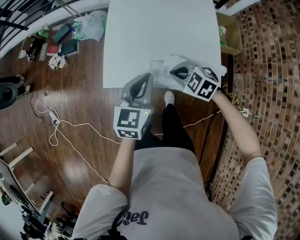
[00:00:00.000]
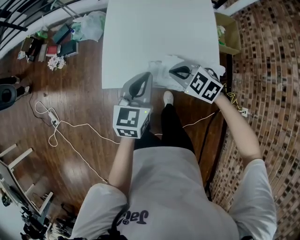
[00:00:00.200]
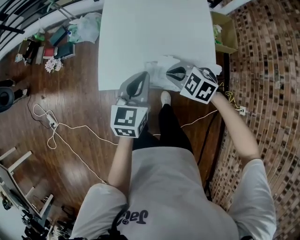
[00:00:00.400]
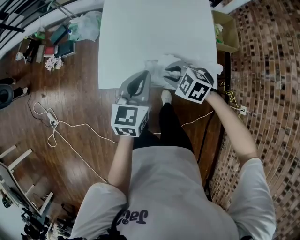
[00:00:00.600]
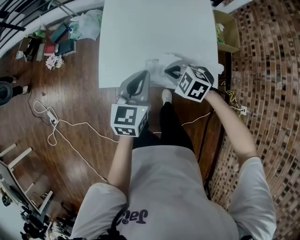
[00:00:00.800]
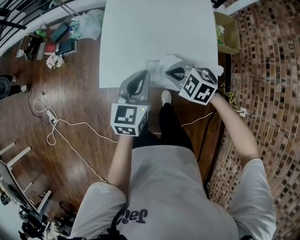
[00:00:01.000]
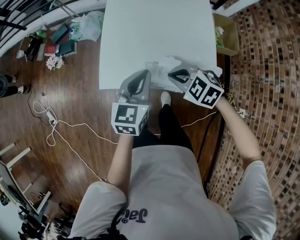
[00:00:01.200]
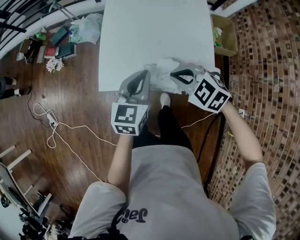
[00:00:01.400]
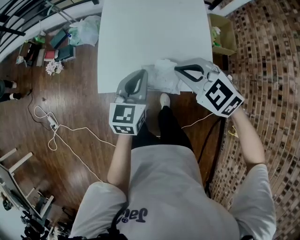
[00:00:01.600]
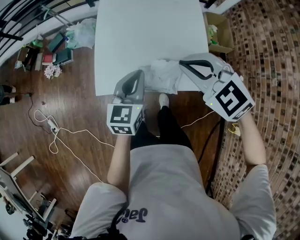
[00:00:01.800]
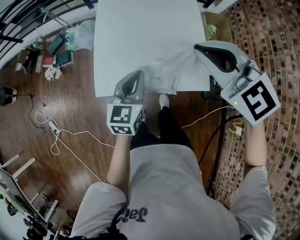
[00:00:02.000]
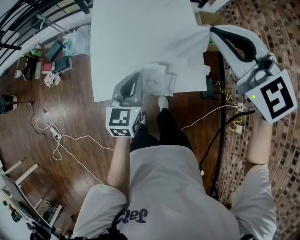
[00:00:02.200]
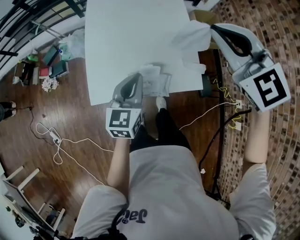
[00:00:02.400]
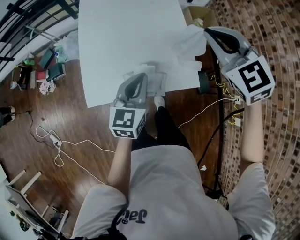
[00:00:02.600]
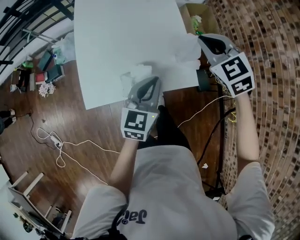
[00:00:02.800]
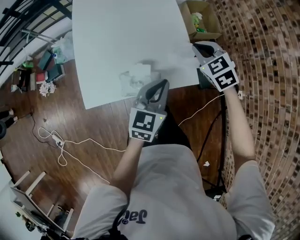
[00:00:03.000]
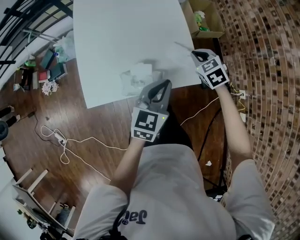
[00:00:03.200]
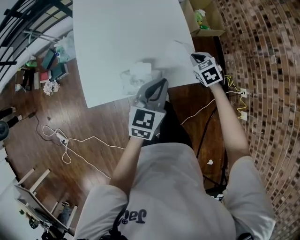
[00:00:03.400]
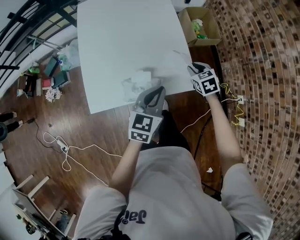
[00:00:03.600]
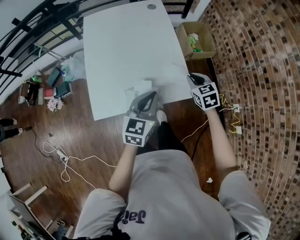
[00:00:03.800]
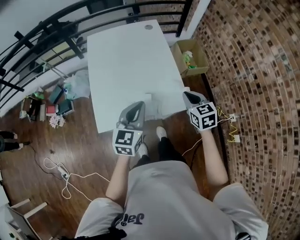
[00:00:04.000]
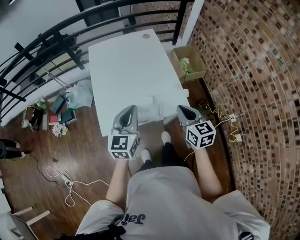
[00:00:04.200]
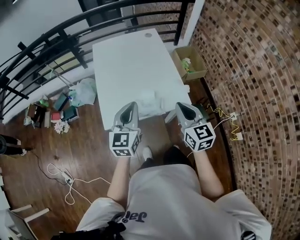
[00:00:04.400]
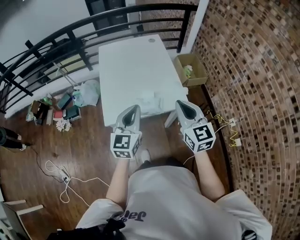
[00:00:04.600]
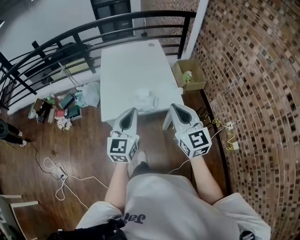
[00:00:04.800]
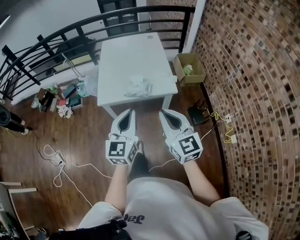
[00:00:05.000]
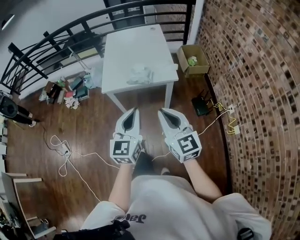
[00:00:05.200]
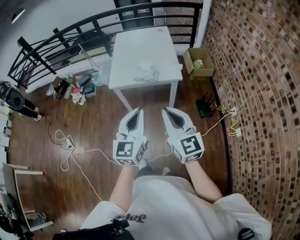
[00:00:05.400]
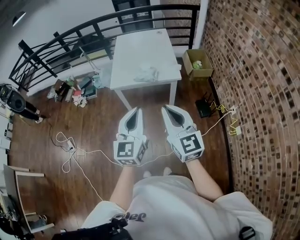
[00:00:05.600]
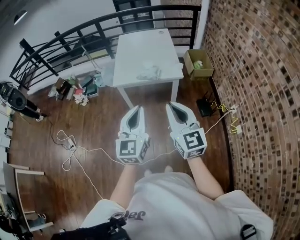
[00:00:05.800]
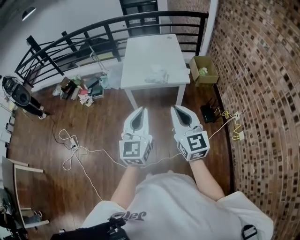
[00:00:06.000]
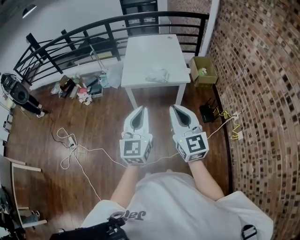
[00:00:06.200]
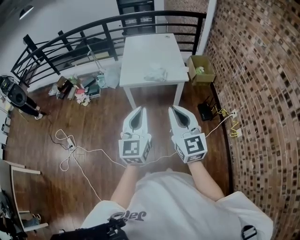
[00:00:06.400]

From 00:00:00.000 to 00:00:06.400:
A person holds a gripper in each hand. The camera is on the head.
From 00:00:00.000 to 00:00:01.600: The right gripper shifts roughly 15 cm upward, and opens, then closes again.
From 00:00:01.600 to 00:00:03.200: The right gripper shifts by approximately 30 cm, and rotates about 40 degrees. Meanwhile the left gripper moves some 20 cm, and changes its angle by roughly 20 degrees.
From 00:00:03.200 to 00:00:04.800: The right gripper goes about 40 cm backward and upward, and tips its fingers upward by roughly 50 degrees, while the left gripper goes approximately 30 cm backward, upward and to the left, and rotates approximately 30 degrees.
From 00:00:04.800 to 00:00:06.400: The two grippers go approximately 30 cm backward.

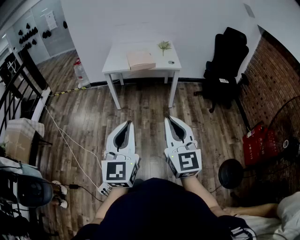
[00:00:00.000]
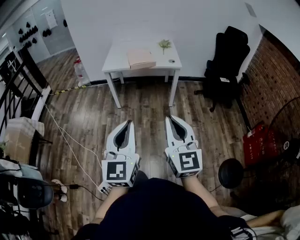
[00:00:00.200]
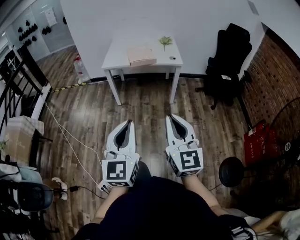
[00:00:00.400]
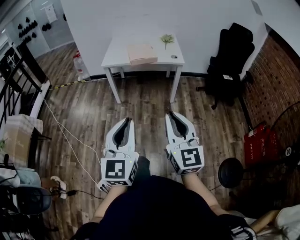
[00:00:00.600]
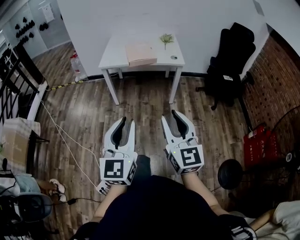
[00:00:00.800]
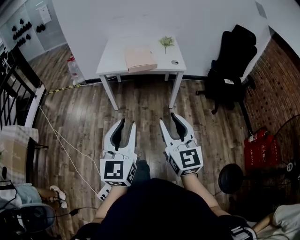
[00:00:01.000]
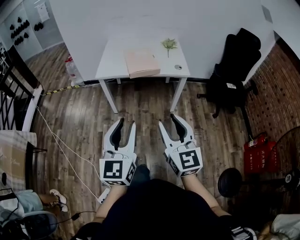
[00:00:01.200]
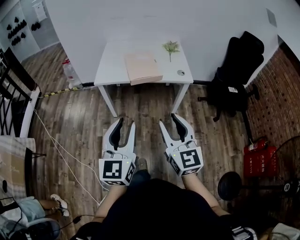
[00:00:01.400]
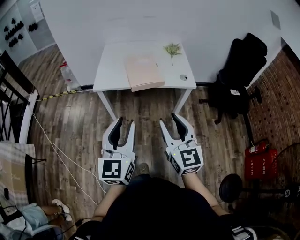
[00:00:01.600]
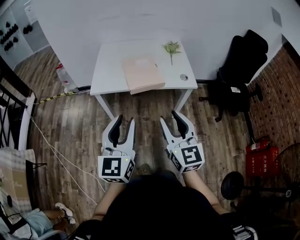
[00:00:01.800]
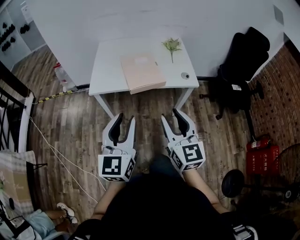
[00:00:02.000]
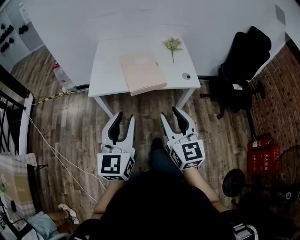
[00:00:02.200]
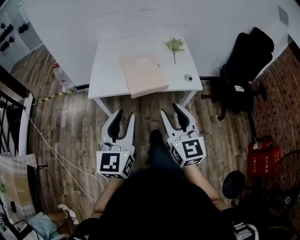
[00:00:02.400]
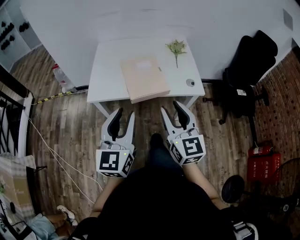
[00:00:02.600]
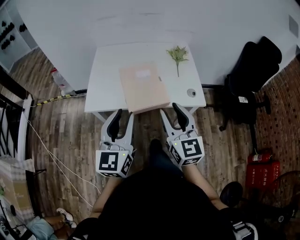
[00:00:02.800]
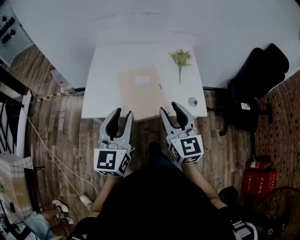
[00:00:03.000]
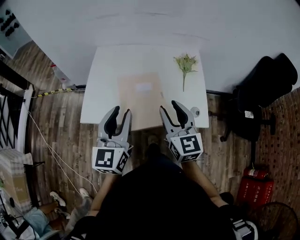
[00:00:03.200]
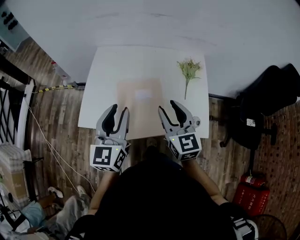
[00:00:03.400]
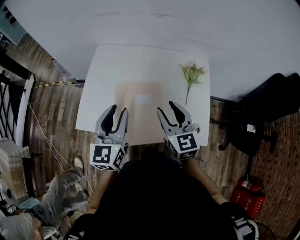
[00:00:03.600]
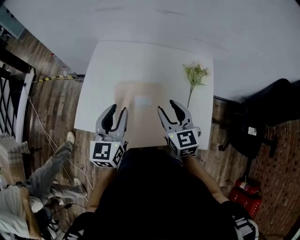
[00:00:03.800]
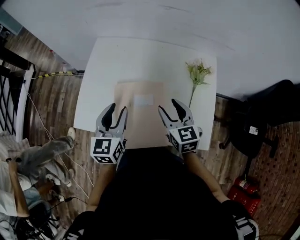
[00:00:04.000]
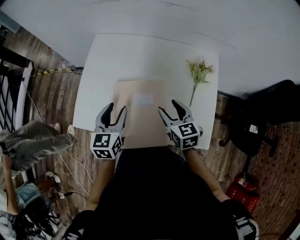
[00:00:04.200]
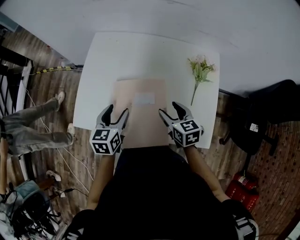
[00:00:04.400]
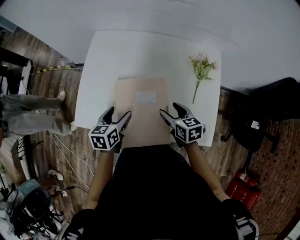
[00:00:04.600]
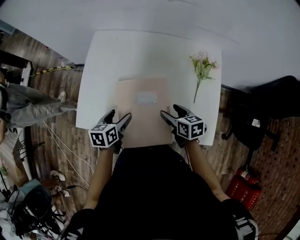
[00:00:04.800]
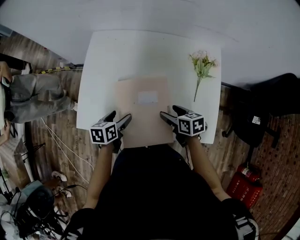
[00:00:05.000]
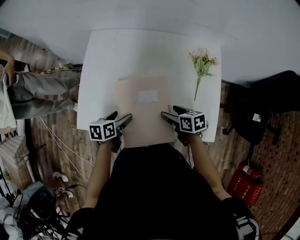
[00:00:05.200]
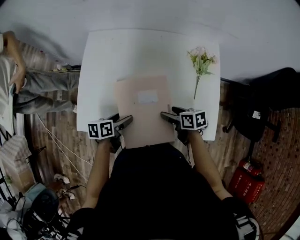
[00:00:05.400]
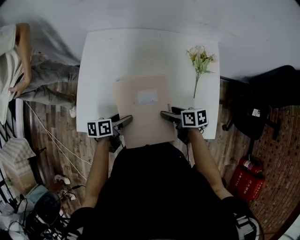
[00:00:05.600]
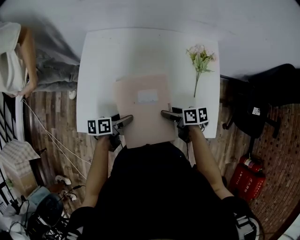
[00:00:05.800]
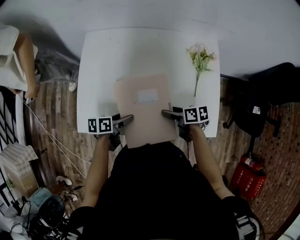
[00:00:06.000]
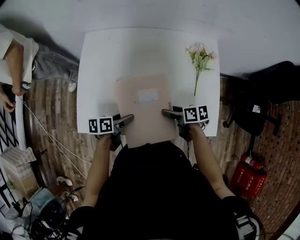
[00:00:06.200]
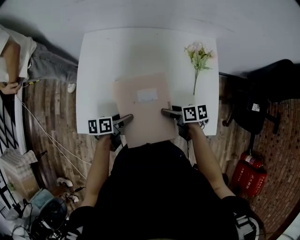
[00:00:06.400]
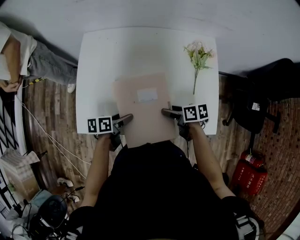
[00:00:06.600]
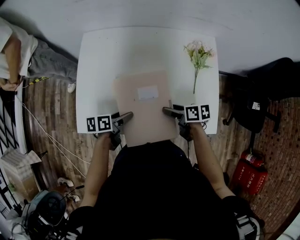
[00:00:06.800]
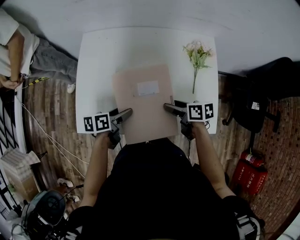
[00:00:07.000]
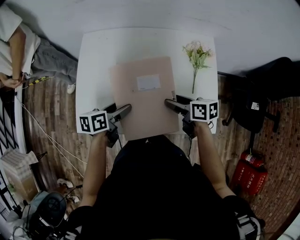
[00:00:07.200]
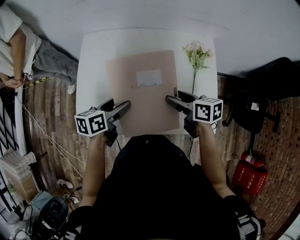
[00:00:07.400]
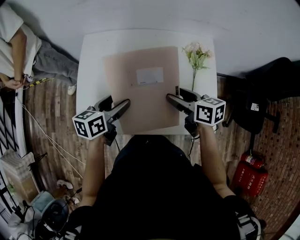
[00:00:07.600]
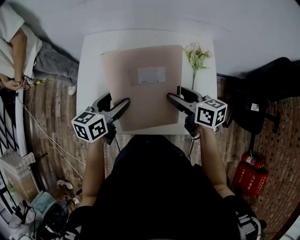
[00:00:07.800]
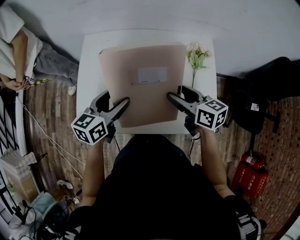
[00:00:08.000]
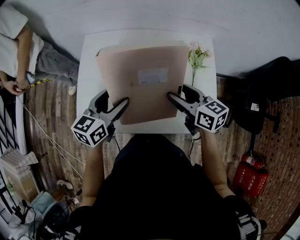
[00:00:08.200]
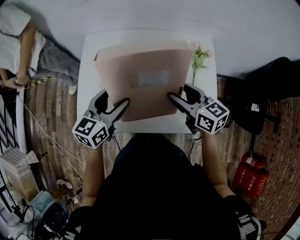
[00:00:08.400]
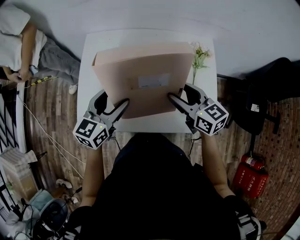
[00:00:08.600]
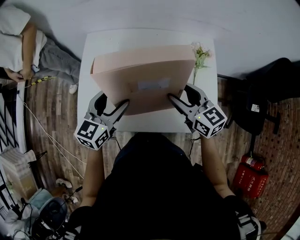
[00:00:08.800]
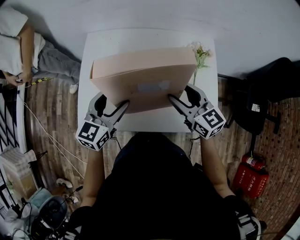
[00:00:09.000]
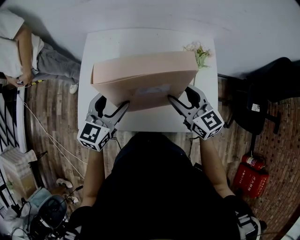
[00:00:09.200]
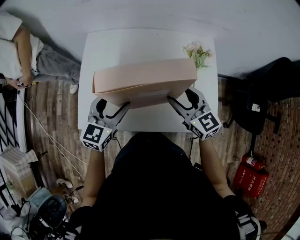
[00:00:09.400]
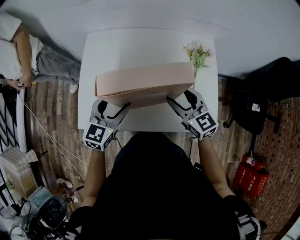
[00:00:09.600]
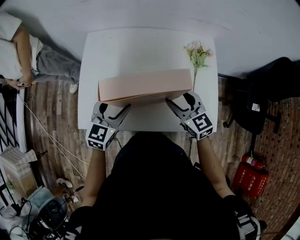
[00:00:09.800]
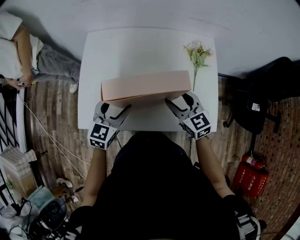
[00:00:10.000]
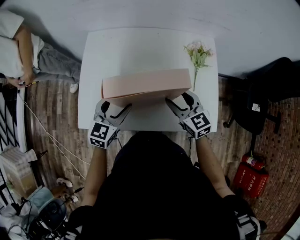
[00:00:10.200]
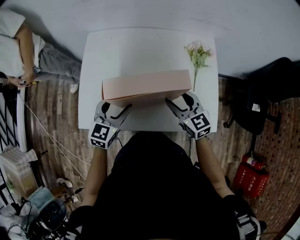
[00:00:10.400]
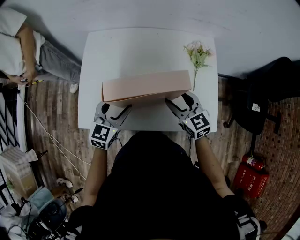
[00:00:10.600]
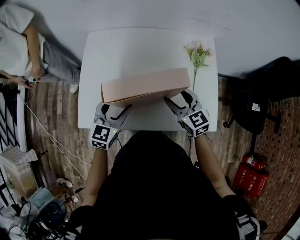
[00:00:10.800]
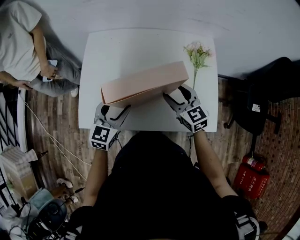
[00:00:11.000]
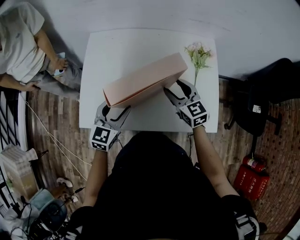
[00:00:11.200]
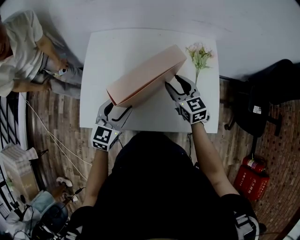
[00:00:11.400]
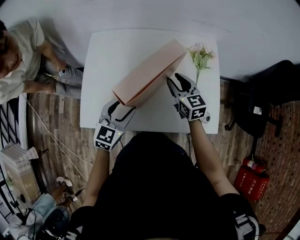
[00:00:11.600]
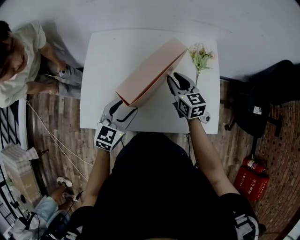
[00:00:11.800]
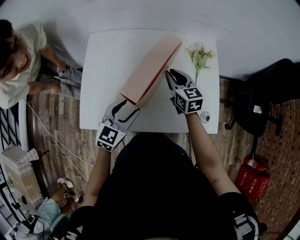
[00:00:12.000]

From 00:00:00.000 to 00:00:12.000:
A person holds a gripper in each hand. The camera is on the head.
From 00:00:00.000 to 00:00:01.600: The grippers both shift forward by approximately 40 cm. The right gripper opens its fingers.
From 00:00:01.600 to 00:00:03.000: The grippers both shift forward by roughly 35 cm.
From 00:00:03.000 to 00:00:04.400: The two grippers go approximately 30 cm forward and downward. The right gripper tips its fingers downward by approximately 30 degrees, and opens its fingers; the left gripper tips its fingers downward by roughly 30 degrees, and opens up.
From 00:00:04.400 to 00:00:06.000: Both grippers move downward, some 10 cm. The left gripper swivels roughly 50 degrees. The right gripper changes its angle by about 40 degrees.
From 00:00:06.000 to 00:00:07.600: The two grippers go some 15 cm upward. The right gripper rotates approximately 30 degrees. The left gripper turns by approximately 30 degrees.
From 00:00:07.600 to 00:00:09.000: Both grippers move upward, roughly 5 cm. The right gripper swivels about 30 degrees. Meanwhile the left gripper swivels about 40 degrees.
From 00:00:09.000 to 00:00:10.400: The two grippers go approximately 5 cm downward.
From 00:00:10.400 to 00:00:12.000: The right gripper moves forward, approximately 10 cm, and closes its fingers.

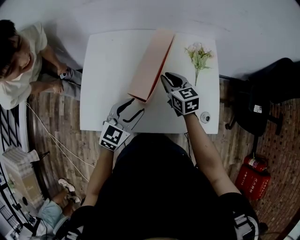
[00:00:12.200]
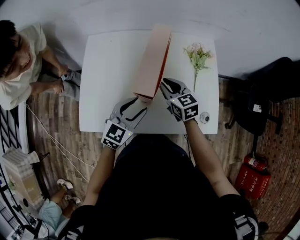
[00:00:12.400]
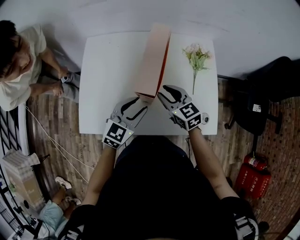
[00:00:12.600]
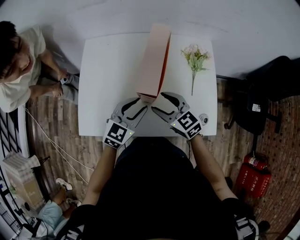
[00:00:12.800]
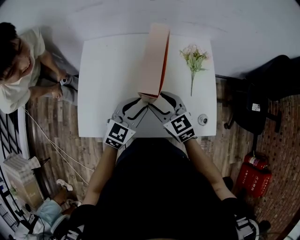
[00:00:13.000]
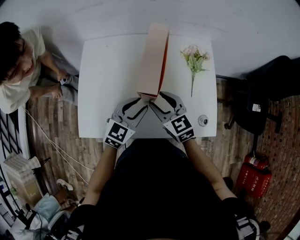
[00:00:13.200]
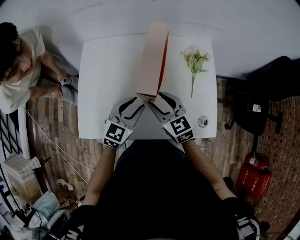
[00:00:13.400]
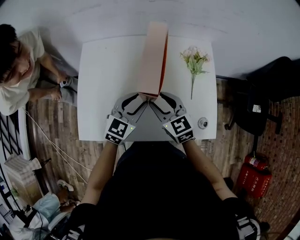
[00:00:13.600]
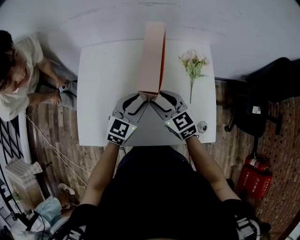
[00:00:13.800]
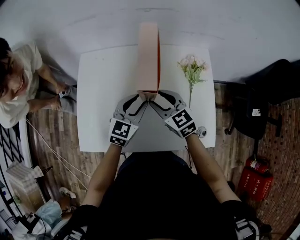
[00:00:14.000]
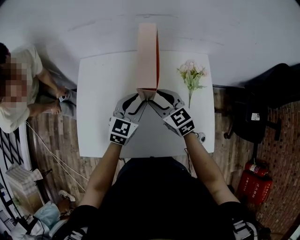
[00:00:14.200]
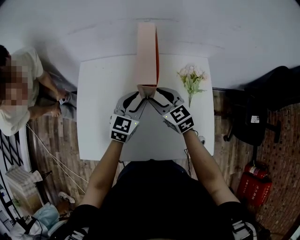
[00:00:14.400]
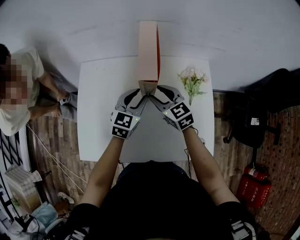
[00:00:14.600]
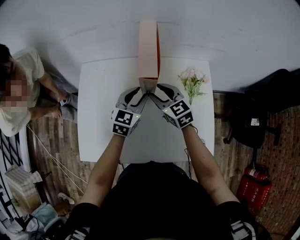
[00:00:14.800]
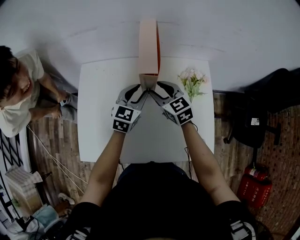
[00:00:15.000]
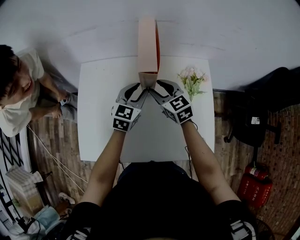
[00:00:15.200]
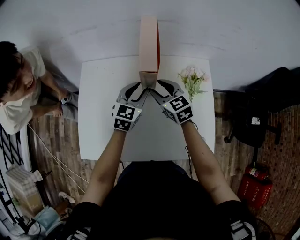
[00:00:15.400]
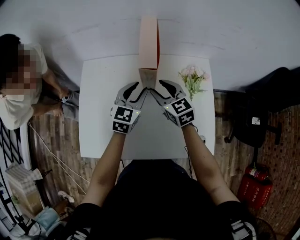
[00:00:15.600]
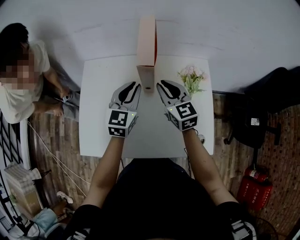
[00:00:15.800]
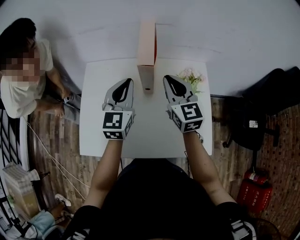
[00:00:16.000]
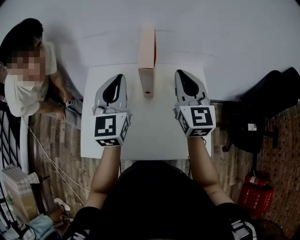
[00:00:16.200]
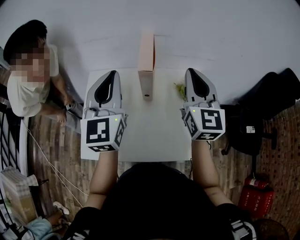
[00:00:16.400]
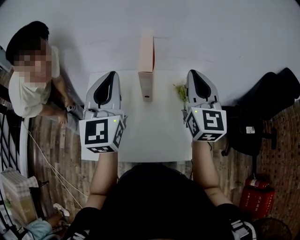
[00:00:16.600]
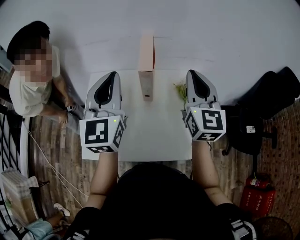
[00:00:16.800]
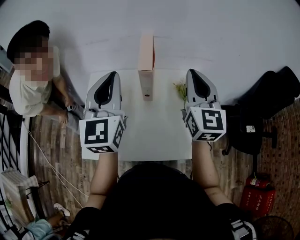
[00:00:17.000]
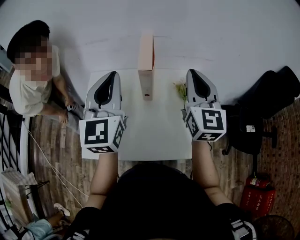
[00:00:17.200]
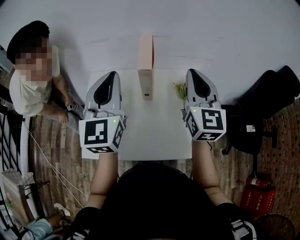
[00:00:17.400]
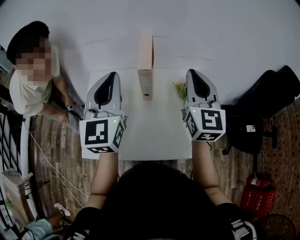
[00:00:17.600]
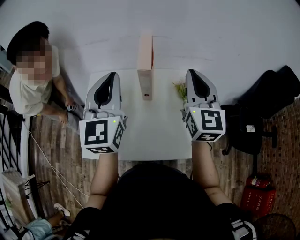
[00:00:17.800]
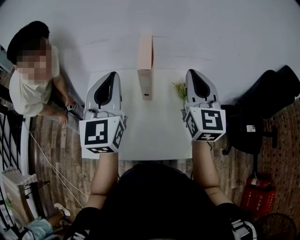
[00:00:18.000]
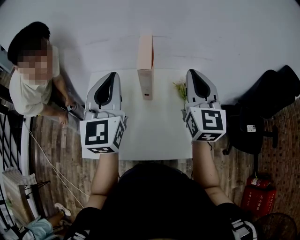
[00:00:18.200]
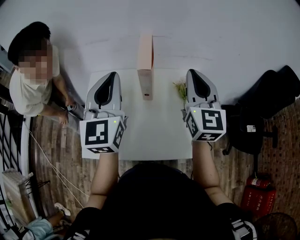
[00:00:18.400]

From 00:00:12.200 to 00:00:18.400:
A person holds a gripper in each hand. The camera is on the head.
From 00:00:12.200 to 00:00:13.800: The left gripper heads forward, covering roughly 10 cm, while the right gripper goes backward and returns, some 10 cm each way, and opens.
From 00:00:13.800 to 00:00:15.400: Both grippers move forward, about 10 cm.
From 00:00:15.400 to 00:00:16.800: The two grippers go approximately 30 cm upward. The left gripper changes its angle by approximately 30 degrees, and closes its fingers; the right gripper changes its angle by some 40 degrees, and closes up.
From 00:00:16.800 to 00:00:18.400: Neither gripper changes place.
